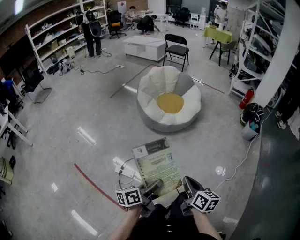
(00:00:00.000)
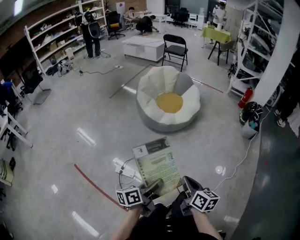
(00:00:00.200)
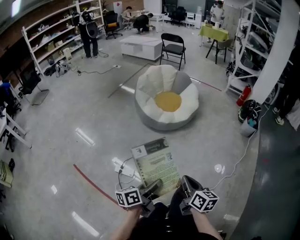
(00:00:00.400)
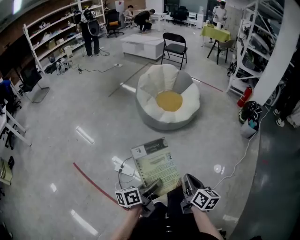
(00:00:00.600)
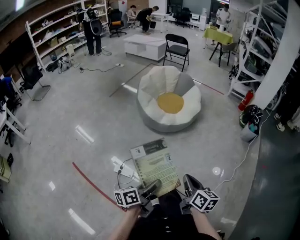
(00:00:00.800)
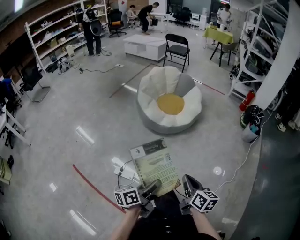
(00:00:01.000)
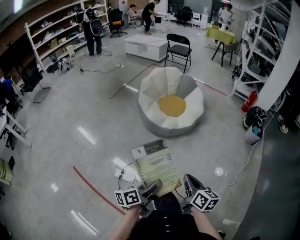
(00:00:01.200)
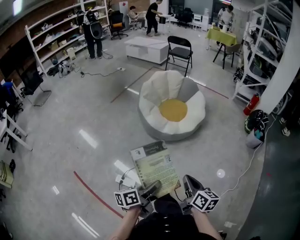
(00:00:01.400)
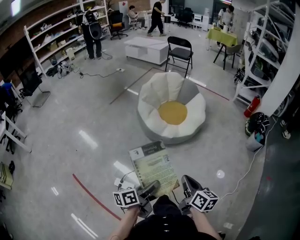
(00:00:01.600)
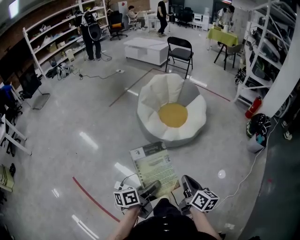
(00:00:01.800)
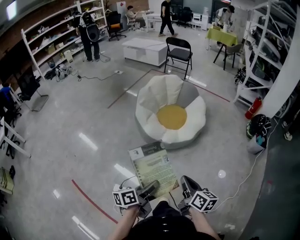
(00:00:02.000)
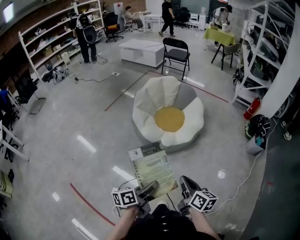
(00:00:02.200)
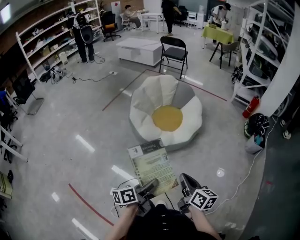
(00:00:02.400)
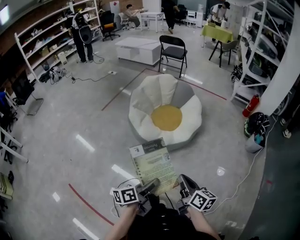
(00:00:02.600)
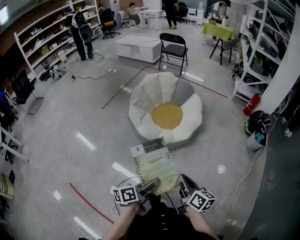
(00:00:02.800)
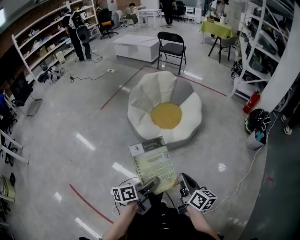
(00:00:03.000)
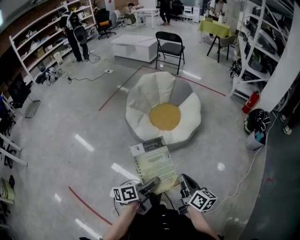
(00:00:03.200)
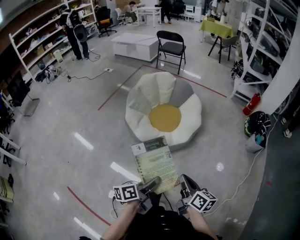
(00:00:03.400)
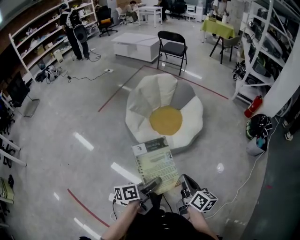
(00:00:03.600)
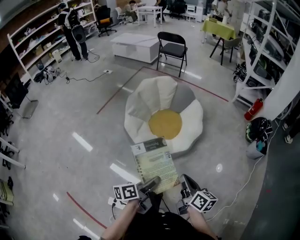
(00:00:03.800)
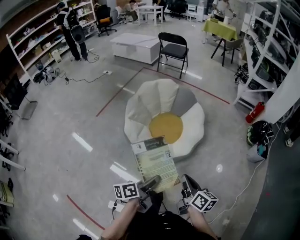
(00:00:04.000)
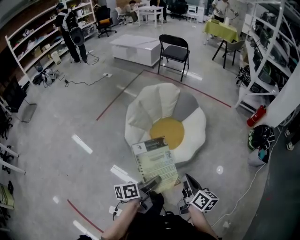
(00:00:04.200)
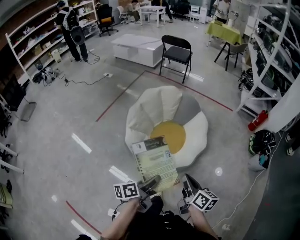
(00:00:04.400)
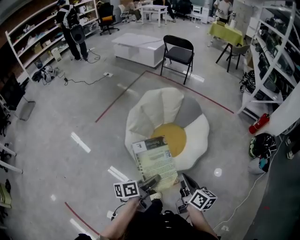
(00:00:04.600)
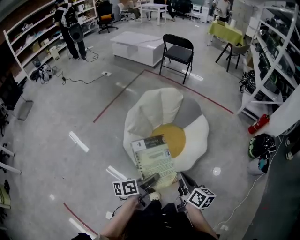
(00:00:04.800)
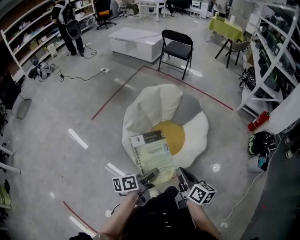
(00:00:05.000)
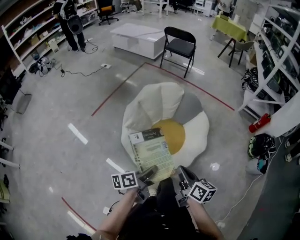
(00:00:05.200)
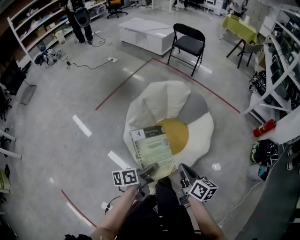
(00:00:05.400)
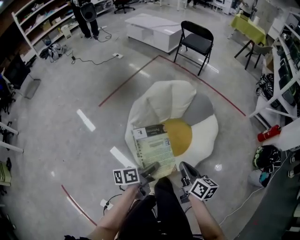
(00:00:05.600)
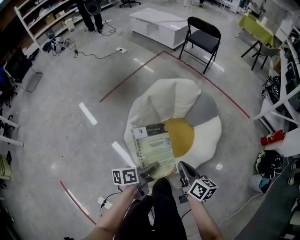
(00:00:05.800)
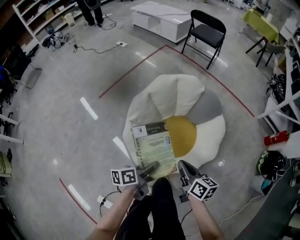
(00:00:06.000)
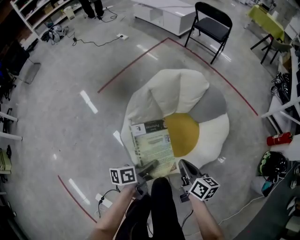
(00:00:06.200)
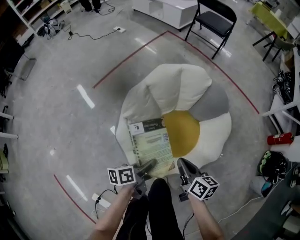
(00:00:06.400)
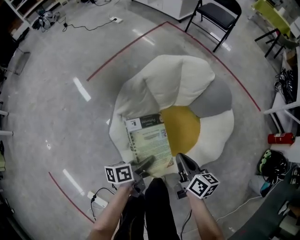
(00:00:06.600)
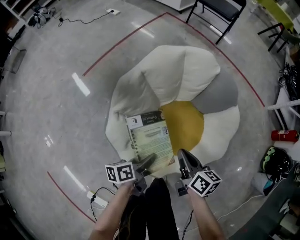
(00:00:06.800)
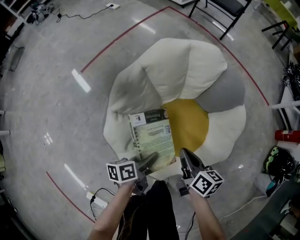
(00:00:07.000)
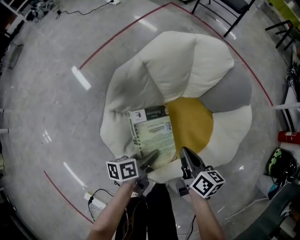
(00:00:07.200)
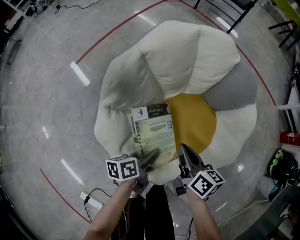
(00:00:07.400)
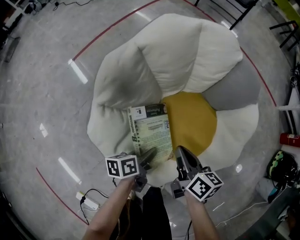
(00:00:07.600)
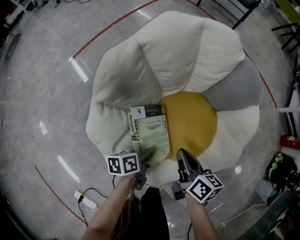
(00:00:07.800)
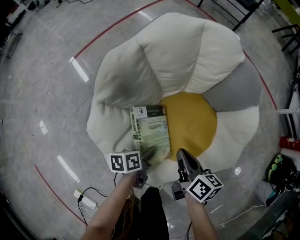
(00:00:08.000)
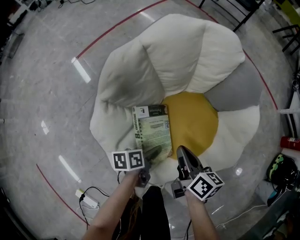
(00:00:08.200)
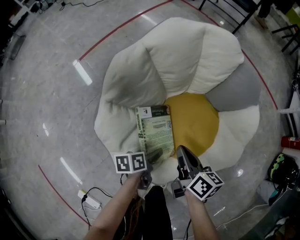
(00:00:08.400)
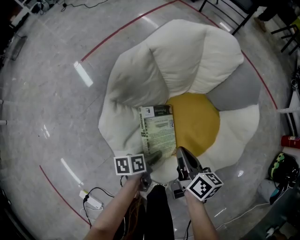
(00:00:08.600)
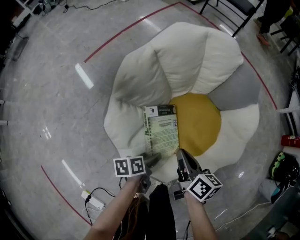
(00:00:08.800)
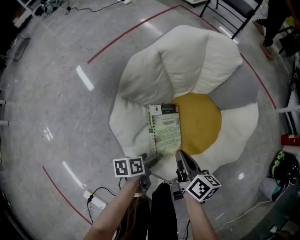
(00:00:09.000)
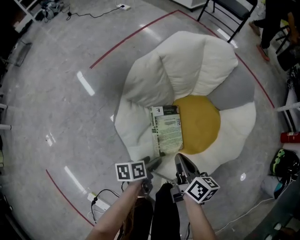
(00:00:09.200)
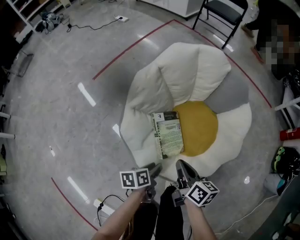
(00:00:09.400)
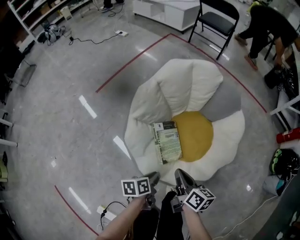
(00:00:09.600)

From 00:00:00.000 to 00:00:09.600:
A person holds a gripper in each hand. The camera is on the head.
From 00:00:00.000 to 00:00:01.600: The two grippers go approximately 20 cm forward.
From 00:00:01.600 to 00:00:03.200: The two grippers go approximately 20 cm forward.
From 00:00:03.200 to 00:00:04.800: Both grippers are carried forward, about 40 cm.
From 00:00:04.800 to 00:00:06.400: The two grippers go about 35 cm forward and downward. The right gripper swivels about 20 degrees.
From 00:00:06.400 to 00:00:08.000: The grippers both shift downward by about 35 cm.
From 00:00:08.000 to 00:00:09.600: The grippers both shift upward and backward by about 25 cm. The left gripper opens, then closes again.

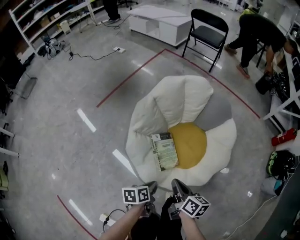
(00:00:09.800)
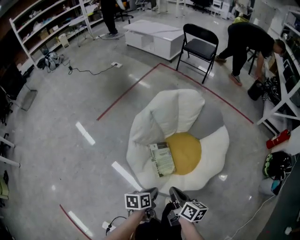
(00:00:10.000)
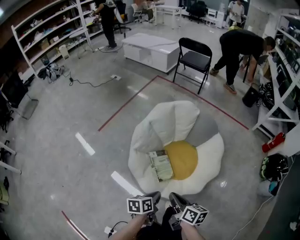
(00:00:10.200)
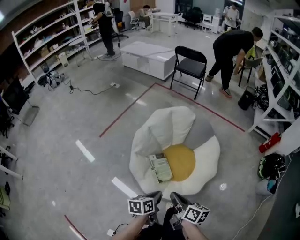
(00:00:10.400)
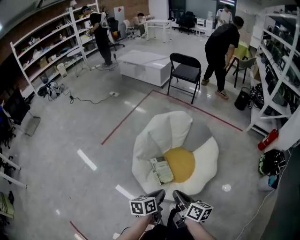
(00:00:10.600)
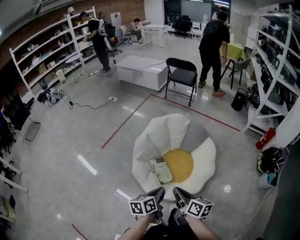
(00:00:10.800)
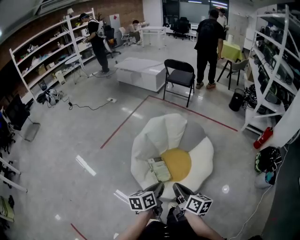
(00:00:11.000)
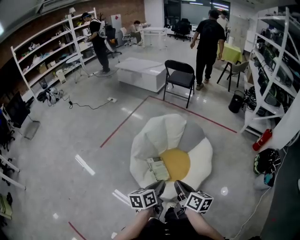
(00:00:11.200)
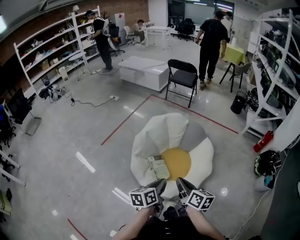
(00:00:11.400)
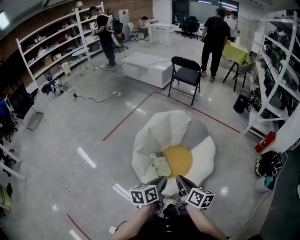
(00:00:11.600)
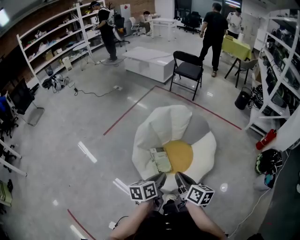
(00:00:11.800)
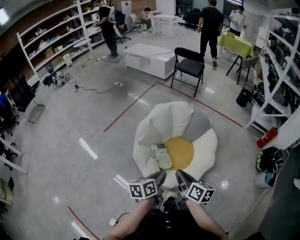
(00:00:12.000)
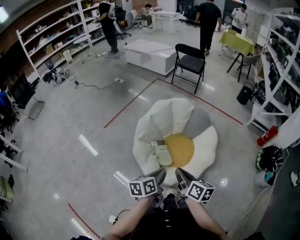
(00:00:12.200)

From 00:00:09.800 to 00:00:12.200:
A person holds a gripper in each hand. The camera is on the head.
From 00:00:09.800 to 00:00:11.000: The left gripper travels upward by approximately 35 cm, and swivels roughly 30 degrees; the right gripper heads upward and backward, covering roughly 30 cm.
From 00:00:11.000 to 00:00:12.200: The grippers make only small movements.

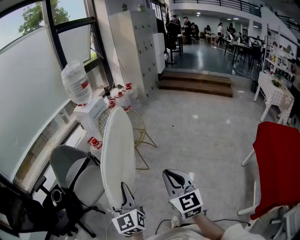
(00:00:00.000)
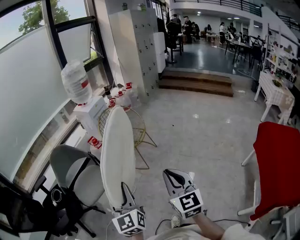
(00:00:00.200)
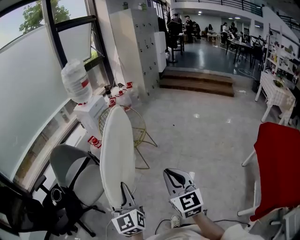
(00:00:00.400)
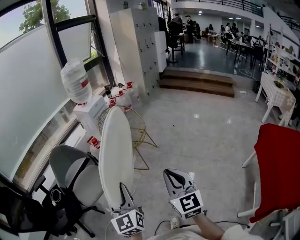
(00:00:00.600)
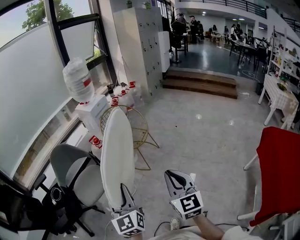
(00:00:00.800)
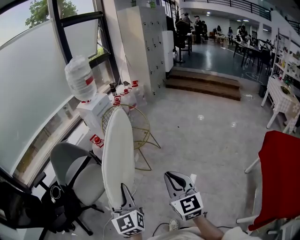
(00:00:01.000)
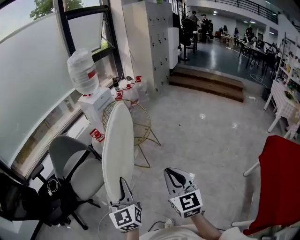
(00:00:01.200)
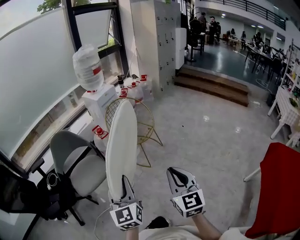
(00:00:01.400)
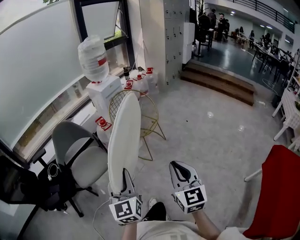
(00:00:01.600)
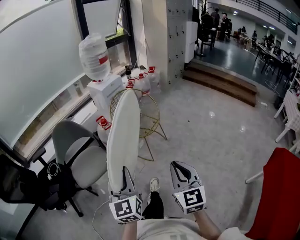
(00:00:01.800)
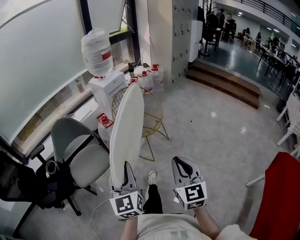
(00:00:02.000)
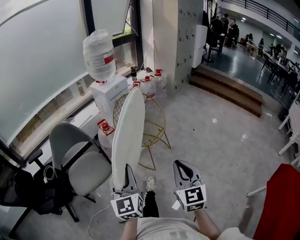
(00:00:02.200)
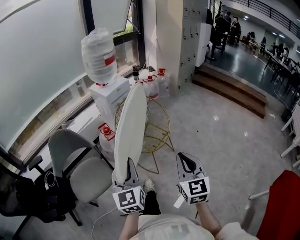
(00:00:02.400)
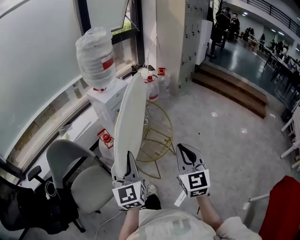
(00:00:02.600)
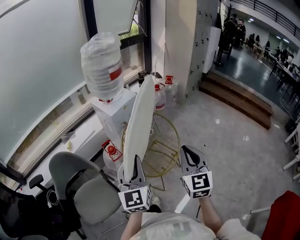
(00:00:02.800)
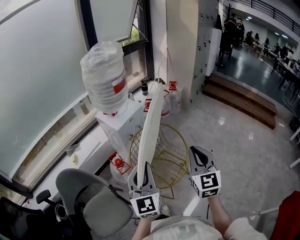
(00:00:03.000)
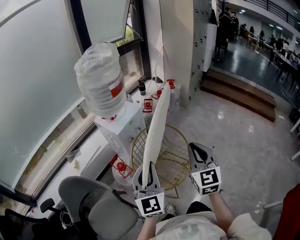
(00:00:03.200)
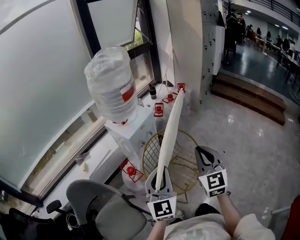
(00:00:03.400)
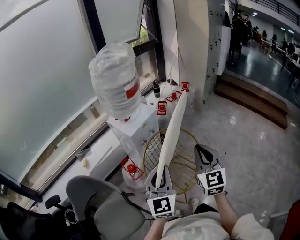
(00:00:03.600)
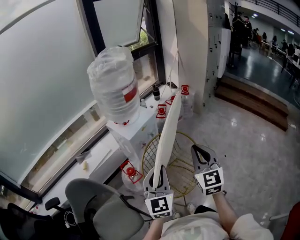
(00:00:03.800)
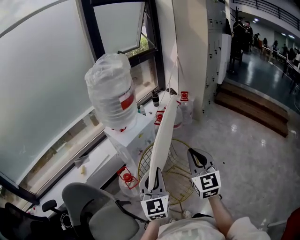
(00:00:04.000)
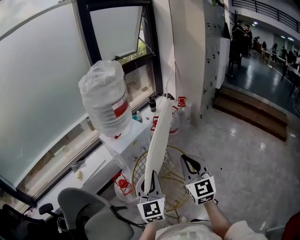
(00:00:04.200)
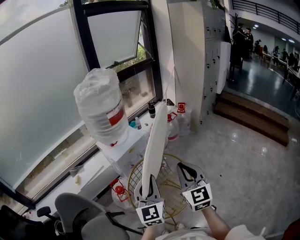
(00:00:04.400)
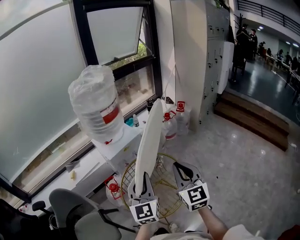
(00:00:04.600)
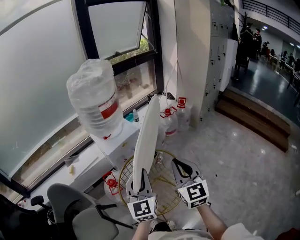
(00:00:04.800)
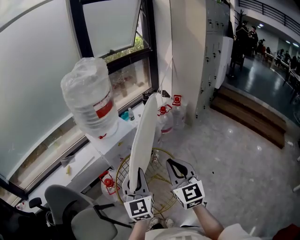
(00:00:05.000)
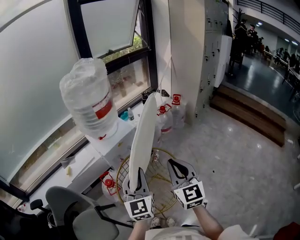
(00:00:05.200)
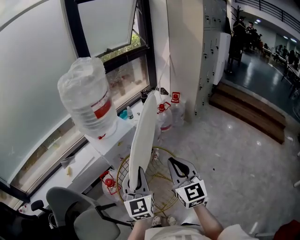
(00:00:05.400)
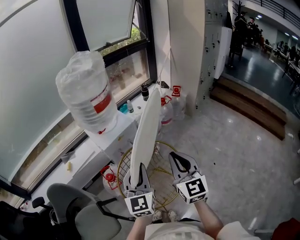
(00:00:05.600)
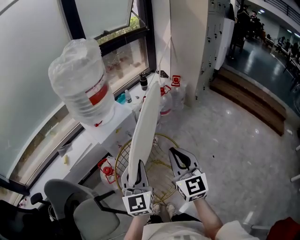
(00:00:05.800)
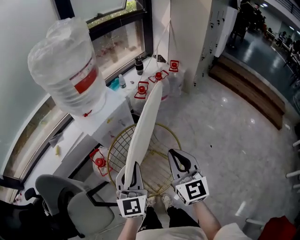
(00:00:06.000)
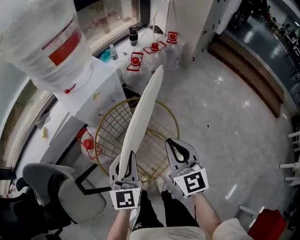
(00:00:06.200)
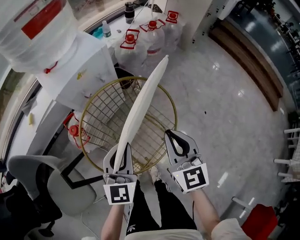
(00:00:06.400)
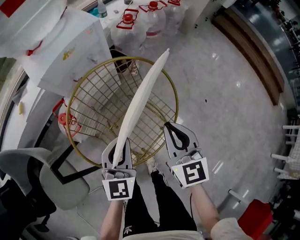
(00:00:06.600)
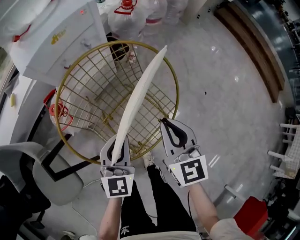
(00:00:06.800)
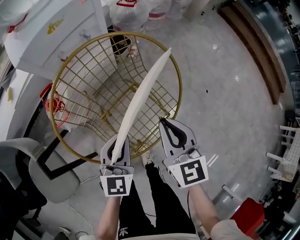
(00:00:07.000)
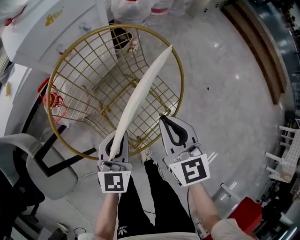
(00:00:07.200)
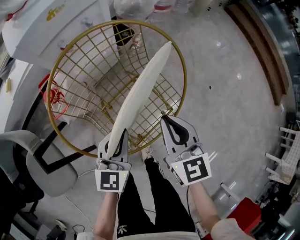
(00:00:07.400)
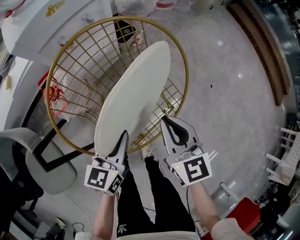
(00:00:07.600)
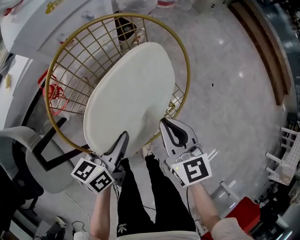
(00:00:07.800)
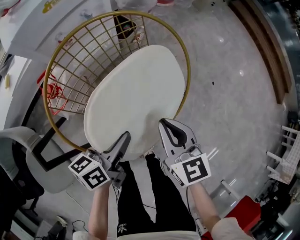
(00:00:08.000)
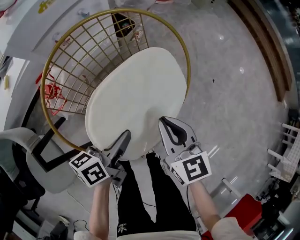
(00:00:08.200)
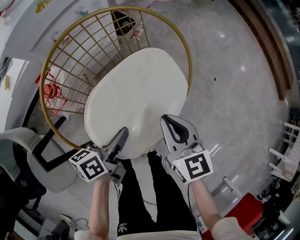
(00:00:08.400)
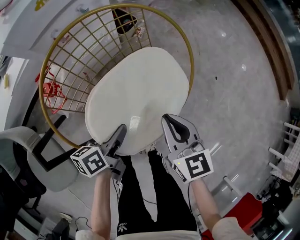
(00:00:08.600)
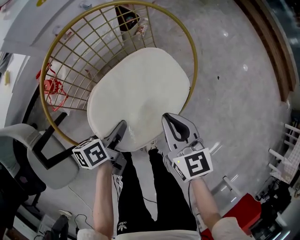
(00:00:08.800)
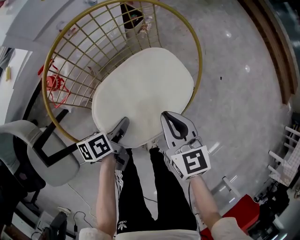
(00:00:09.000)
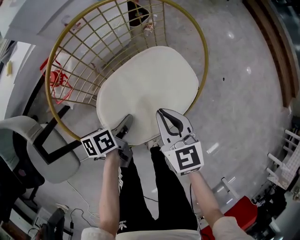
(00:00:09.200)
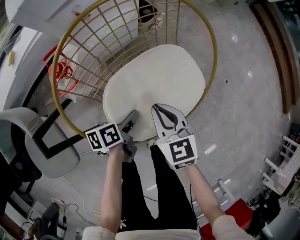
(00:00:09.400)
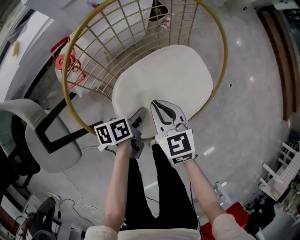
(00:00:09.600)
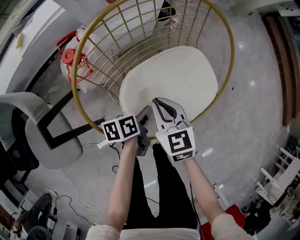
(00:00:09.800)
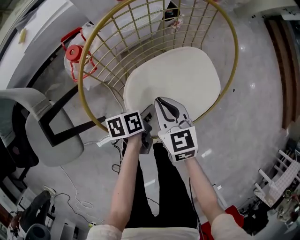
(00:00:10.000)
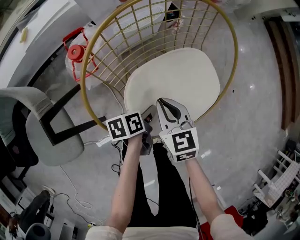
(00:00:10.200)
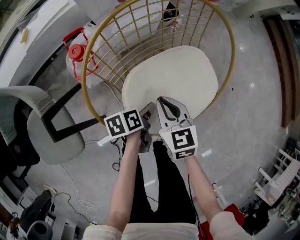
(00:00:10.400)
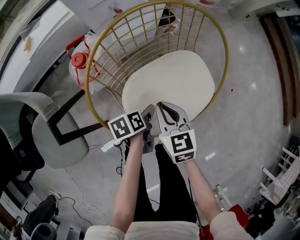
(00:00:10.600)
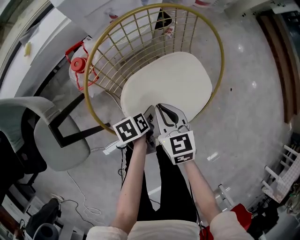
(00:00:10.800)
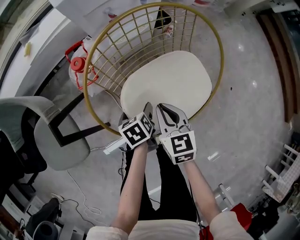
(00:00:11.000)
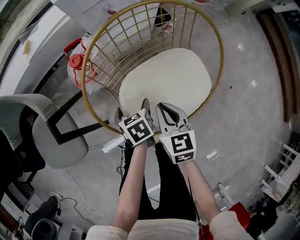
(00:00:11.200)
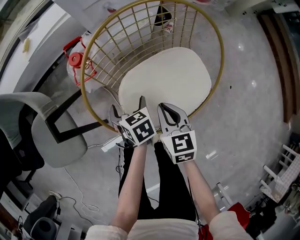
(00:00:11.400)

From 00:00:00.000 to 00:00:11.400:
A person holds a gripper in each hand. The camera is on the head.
From 00:00:00.000 to 00:00:01.400: Both grippers travel together forward, about 5 cm.
From 00:00:01.400 to 00:00:02.800: The two grippers travel together, forward, about 50 cm.
From 00:00:02.800 to 00:00:04.200: The two grippers go some 20 cm forward.
From 00:00:04.200 to 00:00:05.600: The right gripper changes place by approximately 5 cm; the left gripper travels to the right and forward by approximately 5 cm.
From 00:00:05.600 to 00:00:07.200: The grippers both shift downward by some 40 cm. The left gripper turns by roughly 30 degrees. Meanwhile the right gripper changes its angle by approximately 30 degrees.
From 00:00:07.200 to 00:00:08.600: Both grippers travel together downward, about 5 cm. The left gripper rolls counterclockwise, seen from behind, by roughly 60 degrees.
From 00:00:08.600 to 00:00:10.000: The right gripper travels to the left and downward by approximately 15 cm. The left gripper heads downward, covering roughly 10 cm, and swivels roughly 20 degrees.
From 00:00:10.000 to 00:00:11.400: The left gripper ends up some 10 cm from where it was, changes its angle by some 60 degrees, and opens its fingers; the right gripper ends up some 5 cm from where it was.
